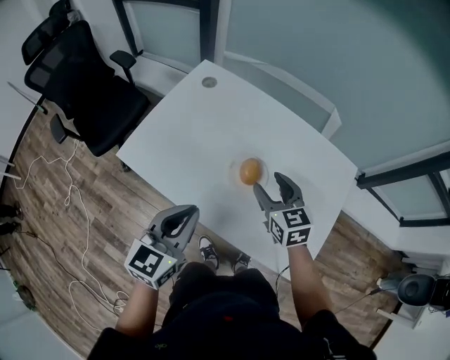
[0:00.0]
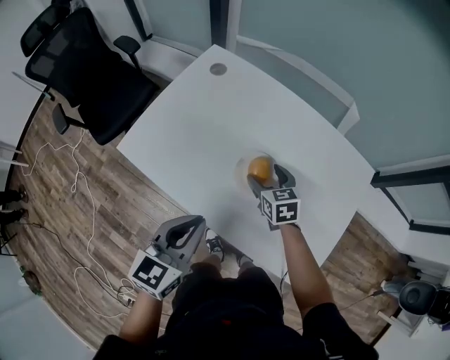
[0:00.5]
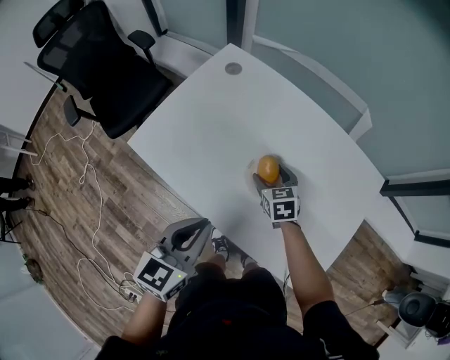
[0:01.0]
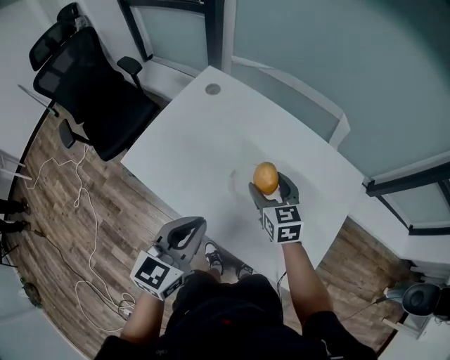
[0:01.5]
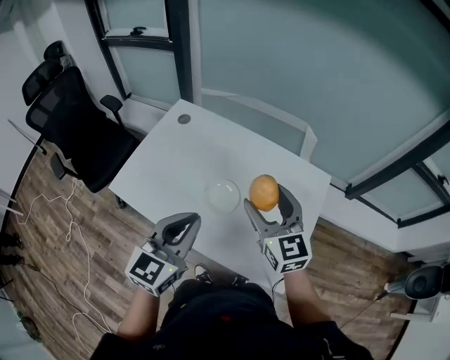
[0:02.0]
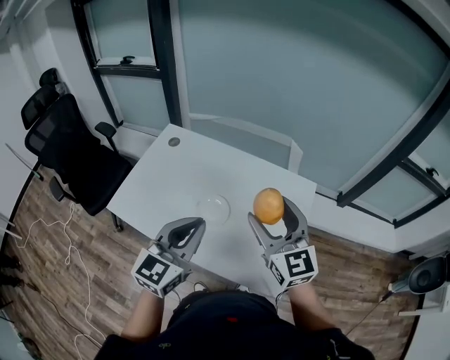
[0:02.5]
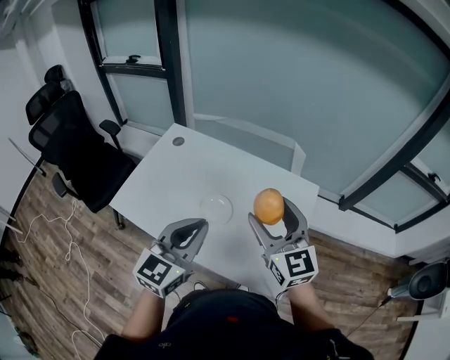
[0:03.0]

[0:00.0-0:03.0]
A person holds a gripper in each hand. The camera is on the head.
0:00.0 to 0:01.5: The right gripper reaches about 15 cm downward, then returns.
0:01.5 to 0:03.0: The left gripper goes roughly 15 cm upward and to the right, while the right gripper travels upward, to the right and backward by about 30 cm, and rotates some 30 degrees.

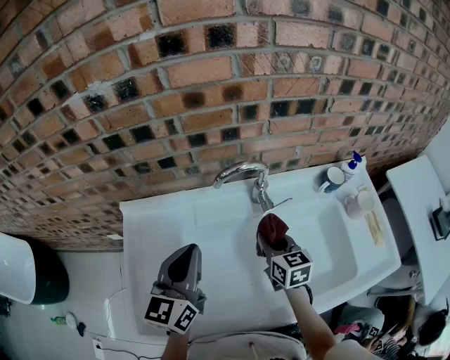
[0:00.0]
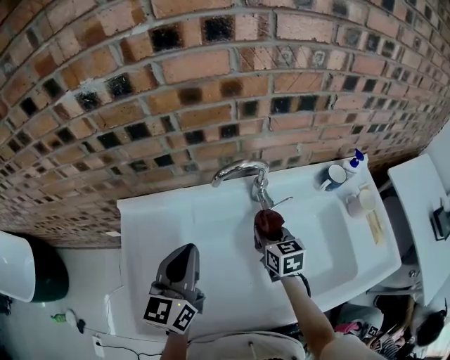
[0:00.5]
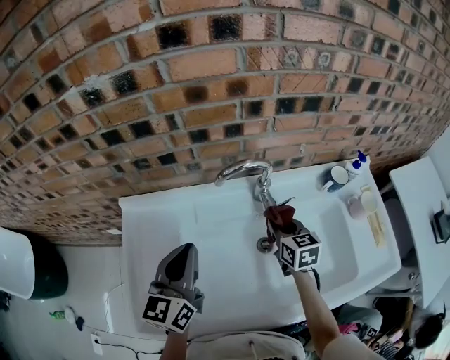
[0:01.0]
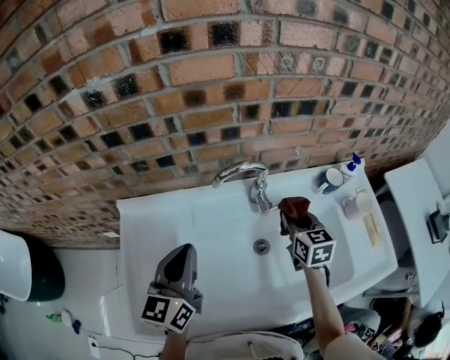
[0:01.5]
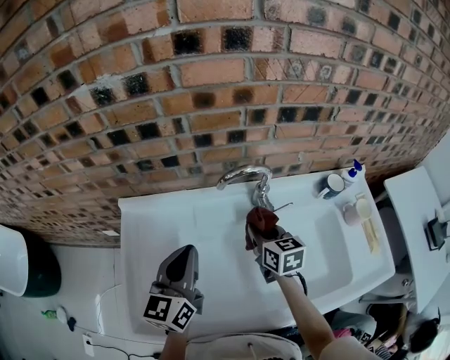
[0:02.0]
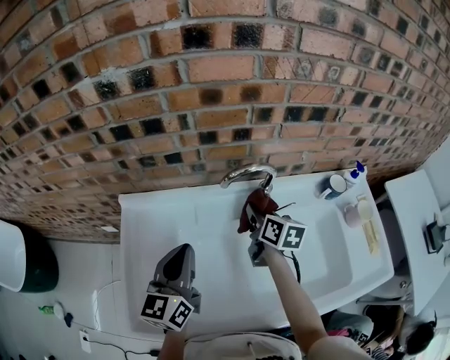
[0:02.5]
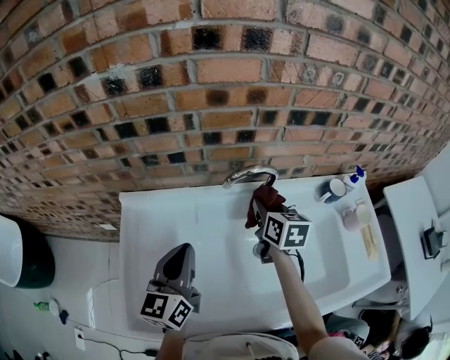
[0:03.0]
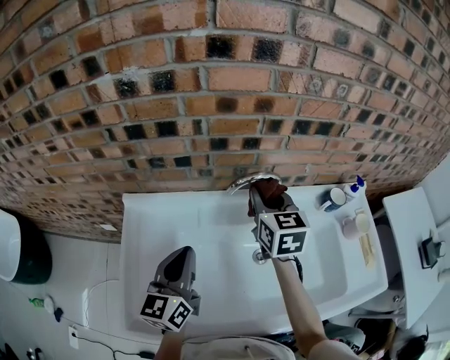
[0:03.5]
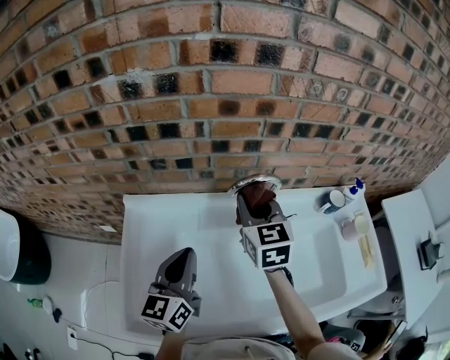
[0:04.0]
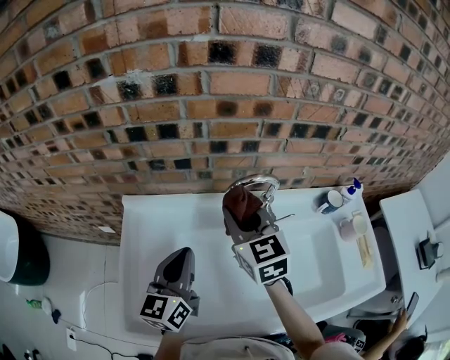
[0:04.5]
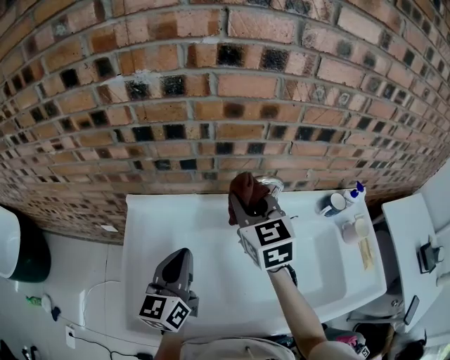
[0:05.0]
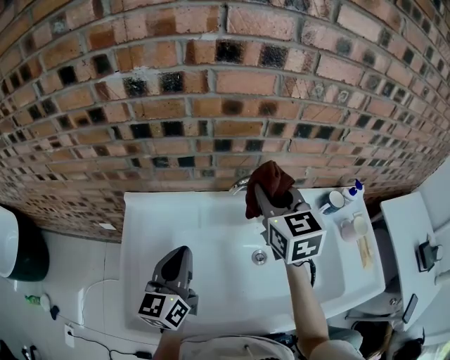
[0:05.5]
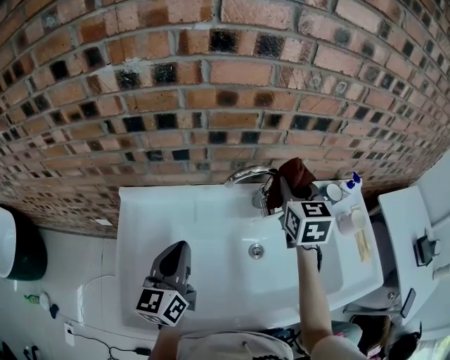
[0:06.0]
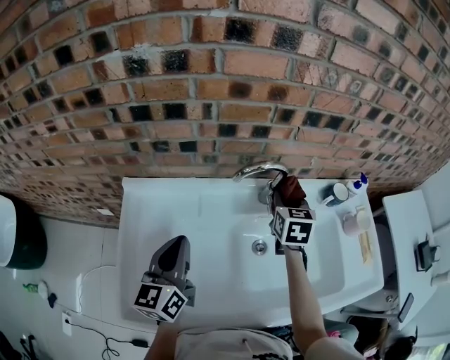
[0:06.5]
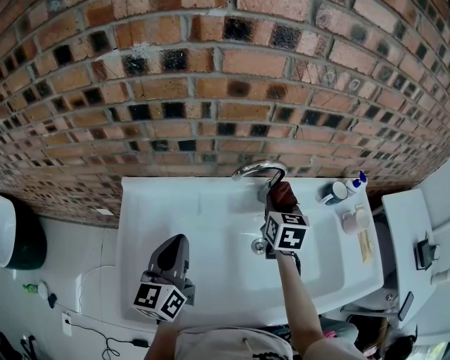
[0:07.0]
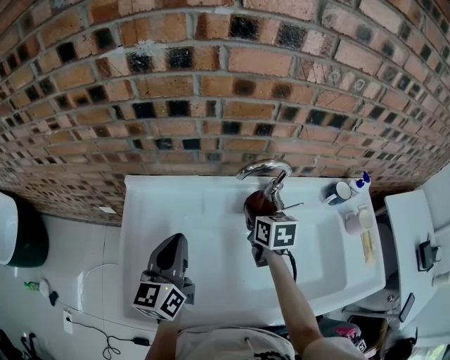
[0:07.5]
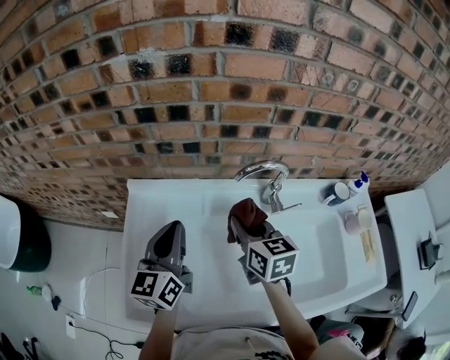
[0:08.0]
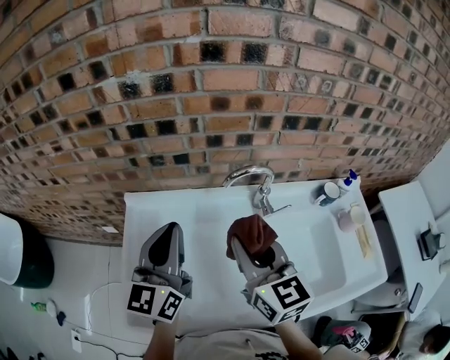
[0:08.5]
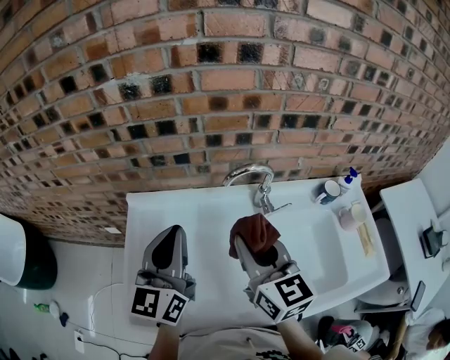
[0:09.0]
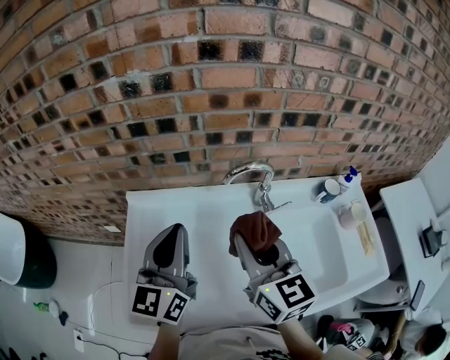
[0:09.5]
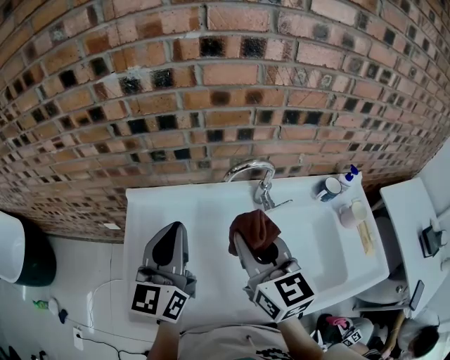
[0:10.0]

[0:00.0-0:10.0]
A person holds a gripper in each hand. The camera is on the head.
0:00.0 to 0:02.0: The right gripper reaches about 10 cm to the right, then returns.
0:02.0 to 0:04.0: The right gripper moves upward and to the left, roughly 15 cm, and turns by about 20 degrees.
0:04.0 to 0:06.0: The right gripper is displaced to the right by roughly 10 cm.
0:06.0 to 0:08.0: The right gripper shifts about 20 cm to the left, backward and downward, and rotates approximately 30 degrees.
0:08.0 to 0:10.0: The left gripper heads upward, covering about 10 cm. The right gripper goes roughly 15 cm upward and backward.

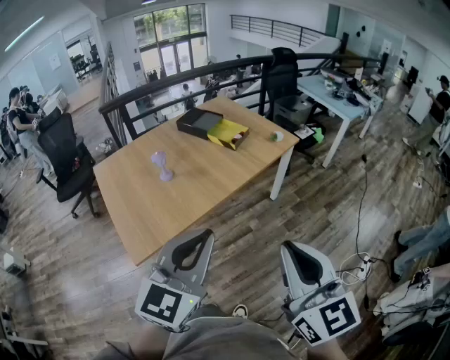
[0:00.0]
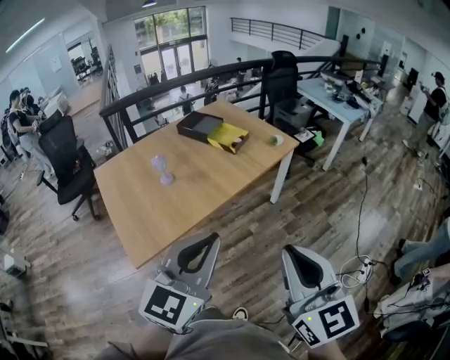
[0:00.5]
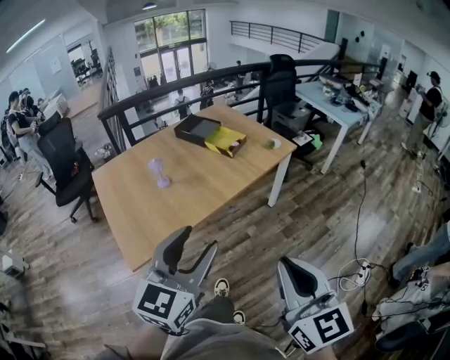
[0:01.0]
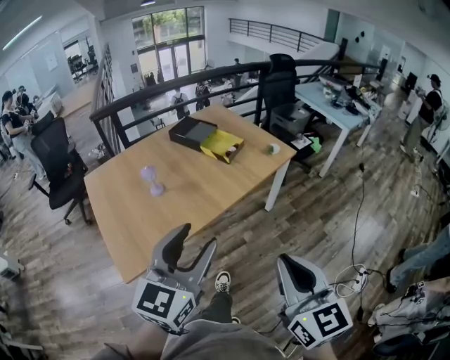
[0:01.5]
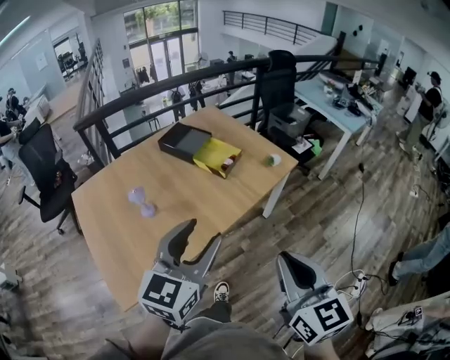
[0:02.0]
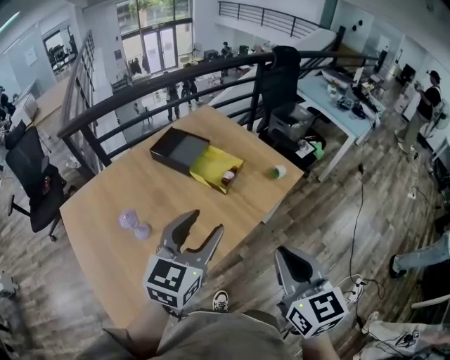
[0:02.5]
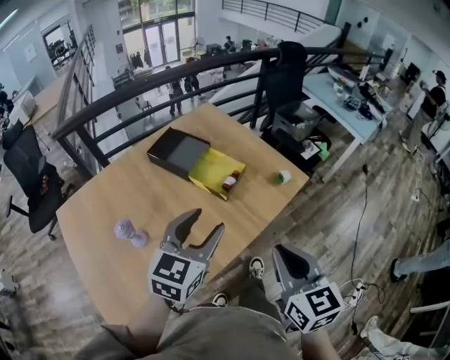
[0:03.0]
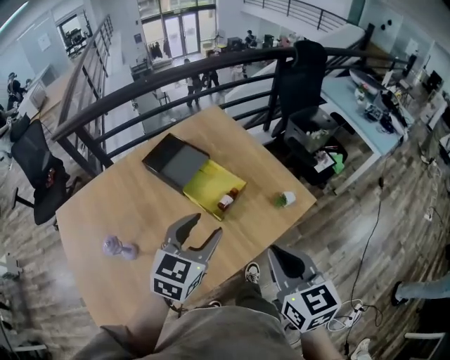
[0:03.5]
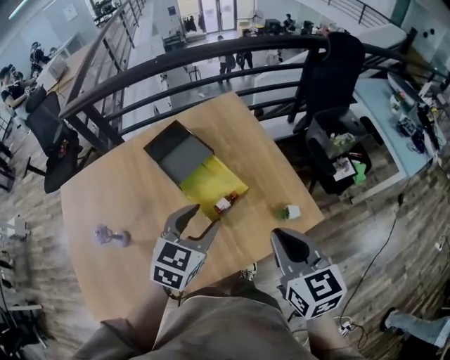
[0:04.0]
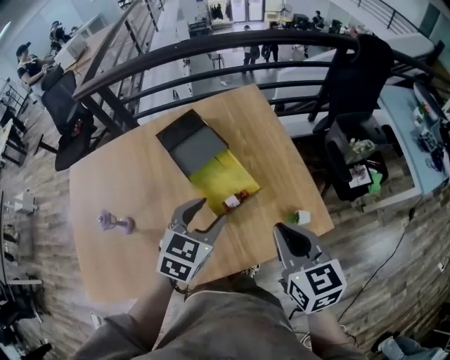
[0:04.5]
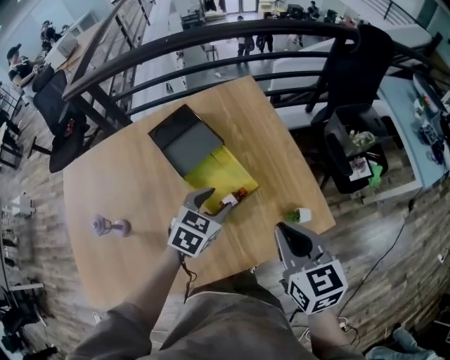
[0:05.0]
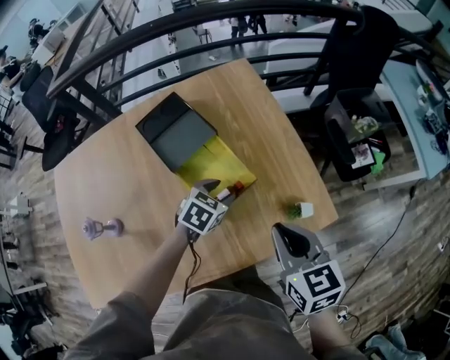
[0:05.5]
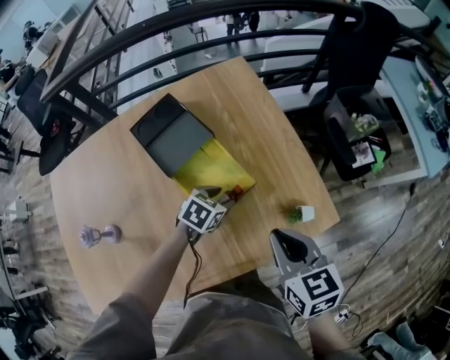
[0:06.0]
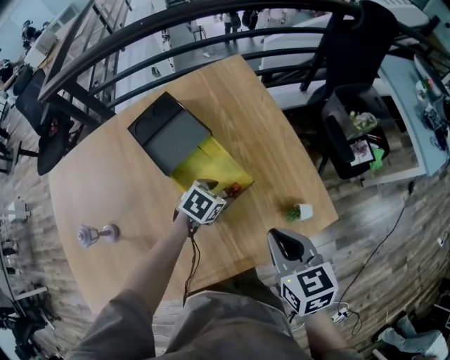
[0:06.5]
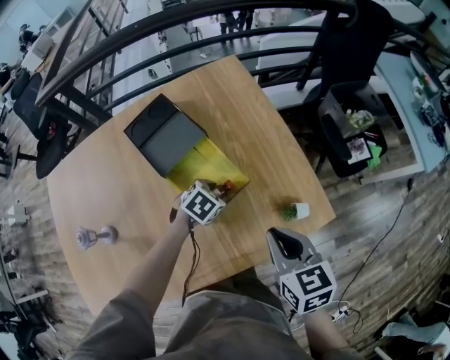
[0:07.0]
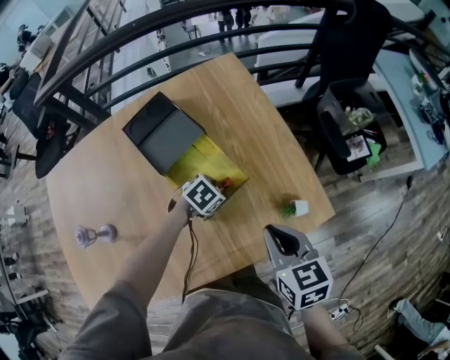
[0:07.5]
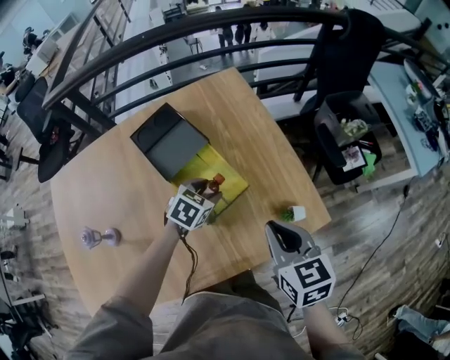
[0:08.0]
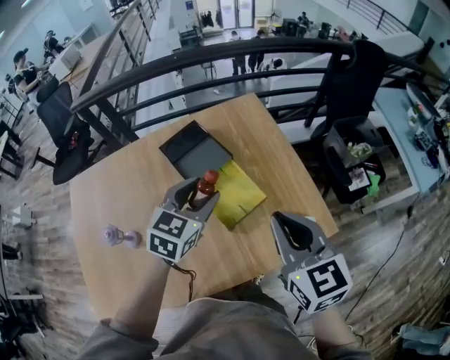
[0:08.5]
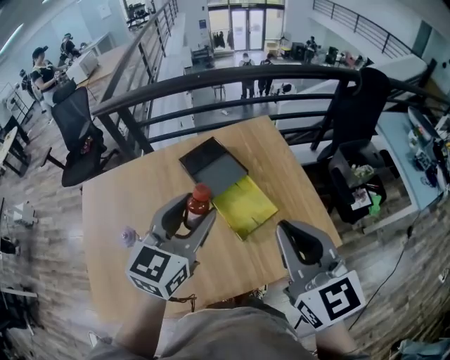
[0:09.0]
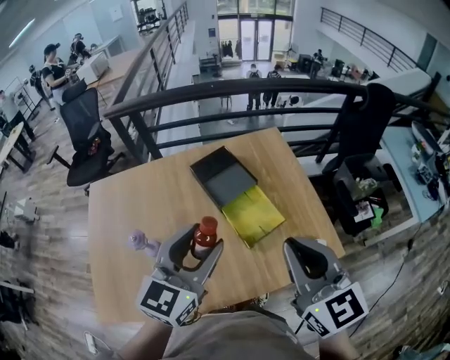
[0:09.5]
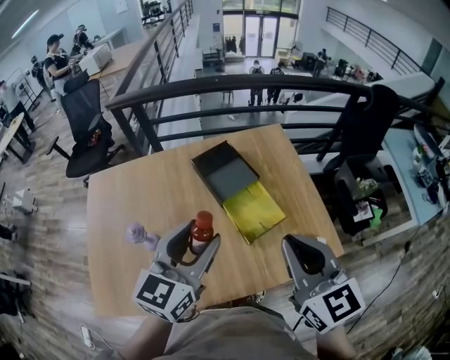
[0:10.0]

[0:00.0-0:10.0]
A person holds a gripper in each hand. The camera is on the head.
0:00.0 to 0:02.0: The grippers both shift forward by roughly 25 cm. The left gripper opens.
0:02.0 to 0:04.0: The two grippers travel together, forward, roughly 50 cm. The right gripper rotates about 20 degrees, while the left gripper swivels some 30 degrees.
0:04.0 to 0:06.0: The left gripper heads downward and forward, covering approximately 30 cm, and changes its angle by some 30 degrees, while the right gripper is displaced downward and forward by about 15 cm.
0:06.0 to 0:08.0: The left gripper goes some 5 cm upward.
0:08.0 to 0:10.0: The right gripper heads upward and to the left, covering some 25 cm, and swivels roughly 30 degrees. The left gripper shifts about 40 cm upward, backward and to the left, and angles its fingers upward, by some 50 degrees.

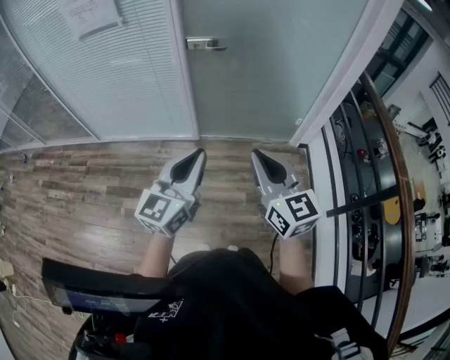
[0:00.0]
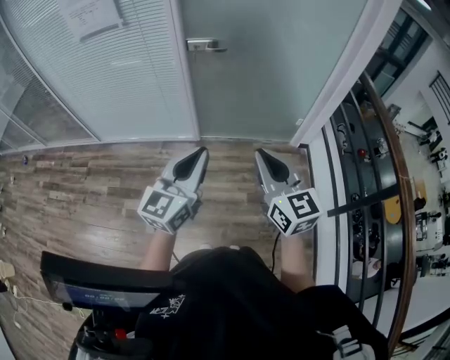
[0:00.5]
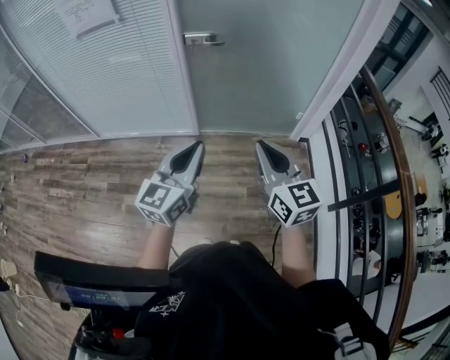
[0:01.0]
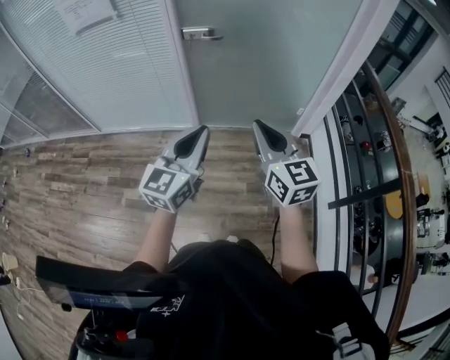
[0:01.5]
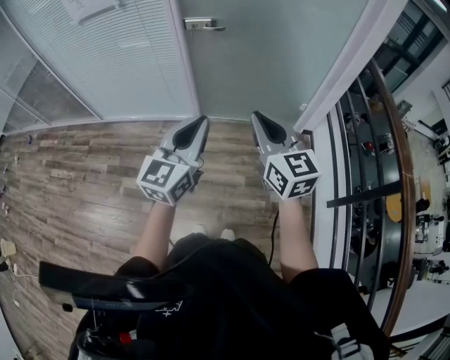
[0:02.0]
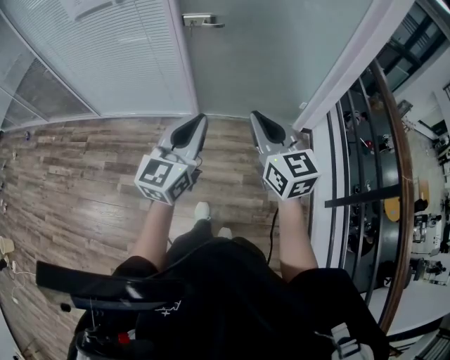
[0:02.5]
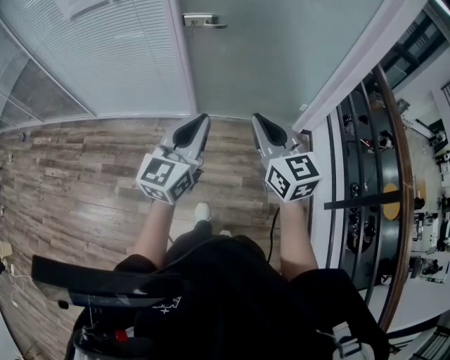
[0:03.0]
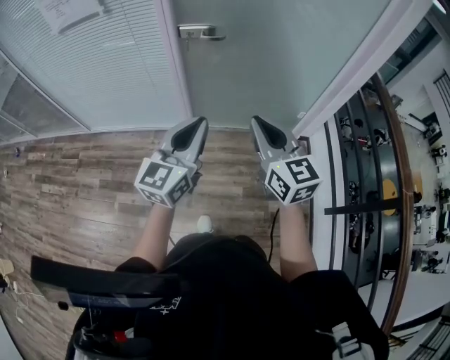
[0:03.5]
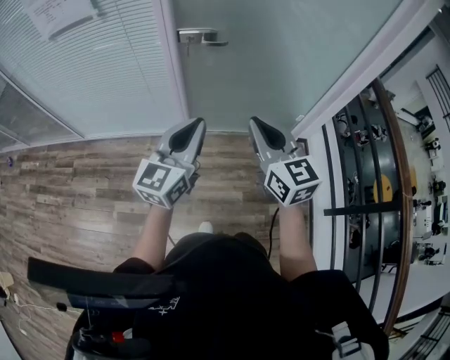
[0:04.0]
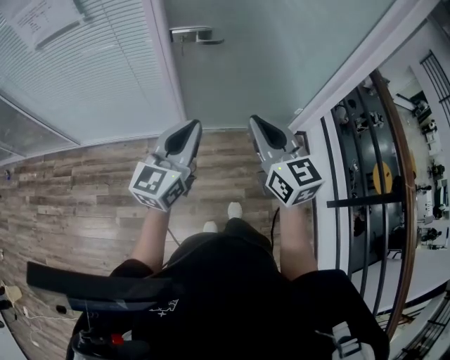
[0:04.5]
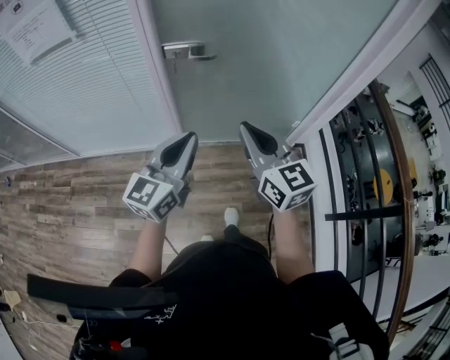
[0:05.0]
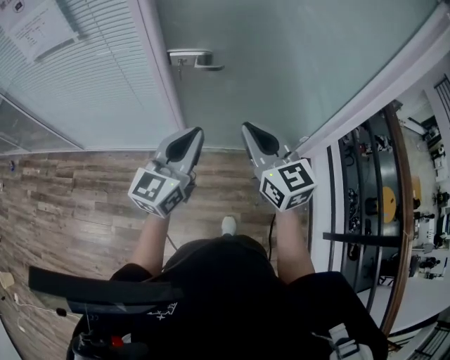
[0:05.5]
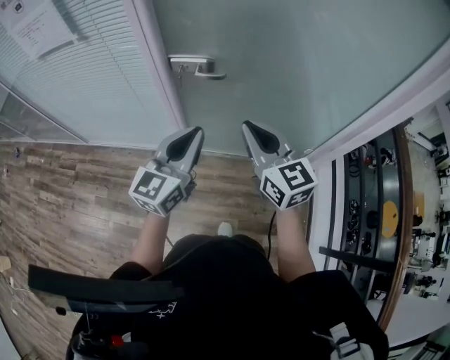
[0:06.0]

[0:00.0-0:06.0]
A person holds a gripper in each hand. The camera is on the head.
0:00.0 to 0:02.0: The right gripper shifts some 5 cm forward; the left gripper changes place by some 5 cm.
0:02.0 to 0:04.0: Both grippers travel together forward and to the left, approximately 15 cm.
0:04.0 to 0:06.0: Both grippers travel together forward, roughly 15 cm.
